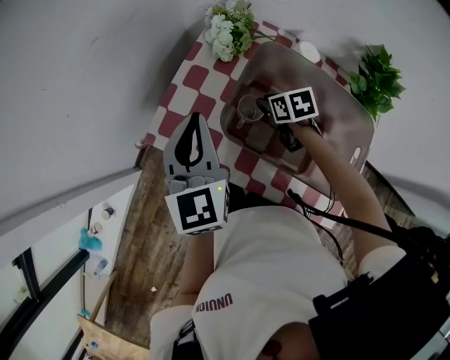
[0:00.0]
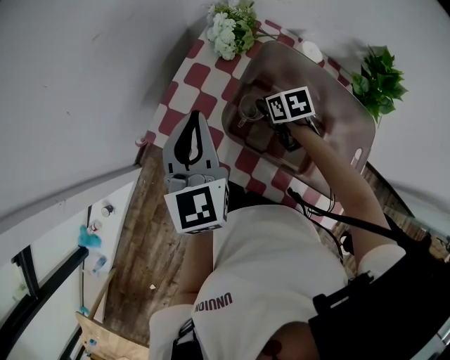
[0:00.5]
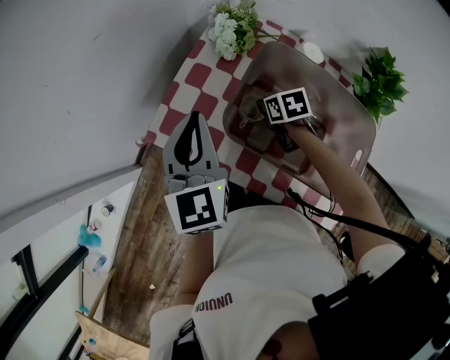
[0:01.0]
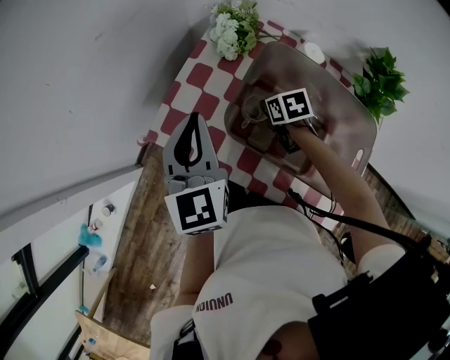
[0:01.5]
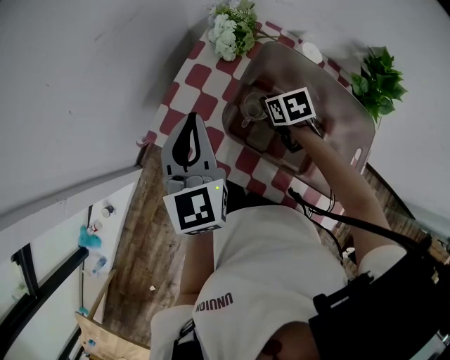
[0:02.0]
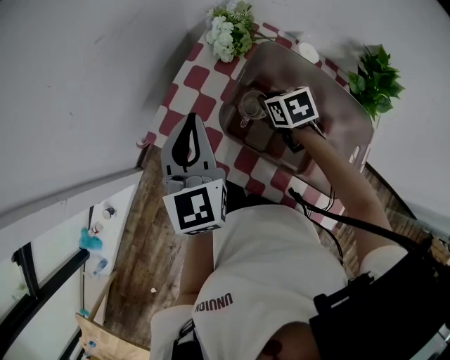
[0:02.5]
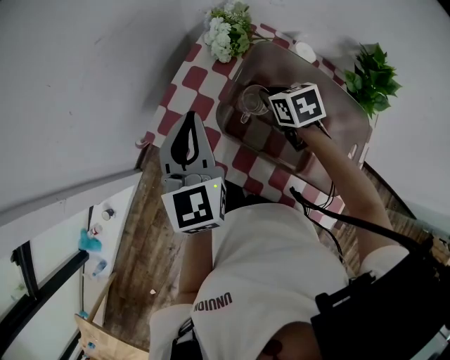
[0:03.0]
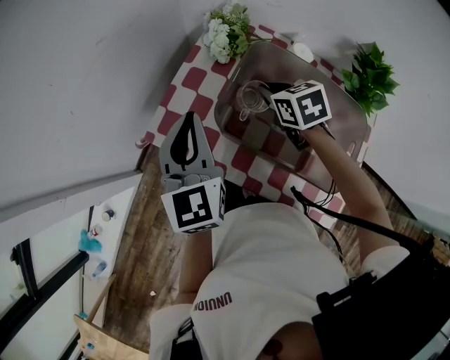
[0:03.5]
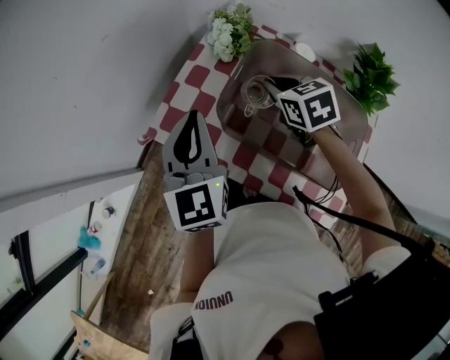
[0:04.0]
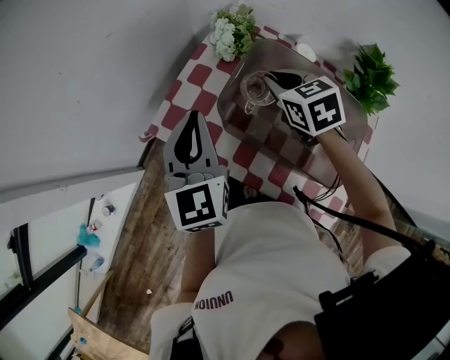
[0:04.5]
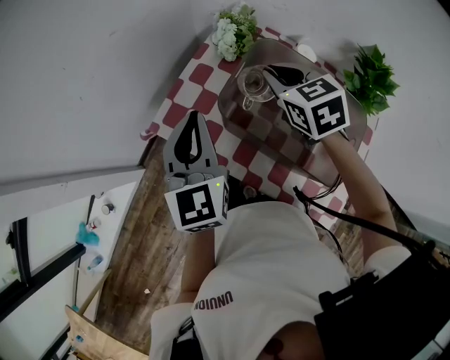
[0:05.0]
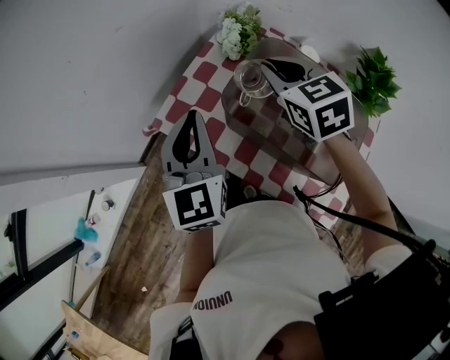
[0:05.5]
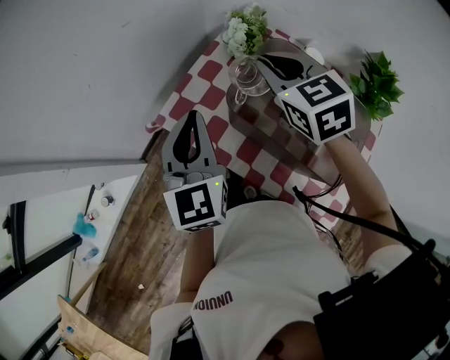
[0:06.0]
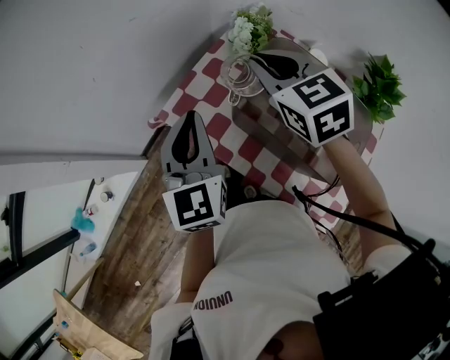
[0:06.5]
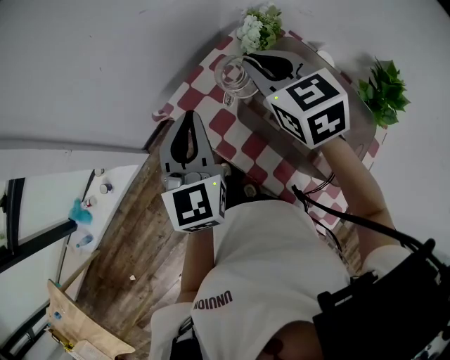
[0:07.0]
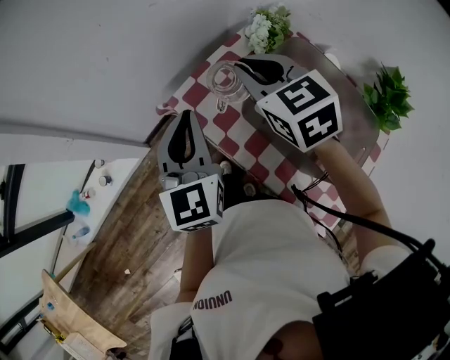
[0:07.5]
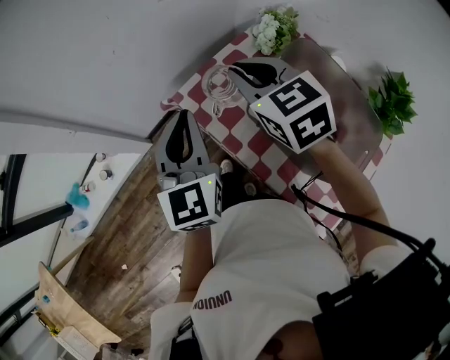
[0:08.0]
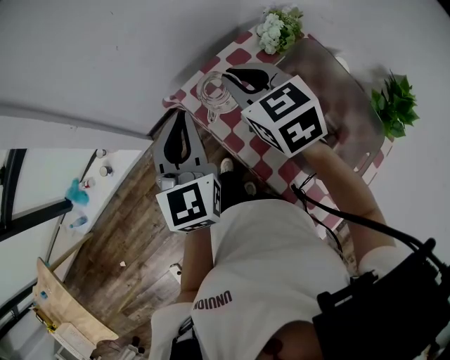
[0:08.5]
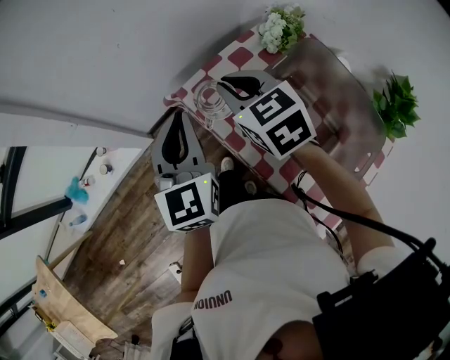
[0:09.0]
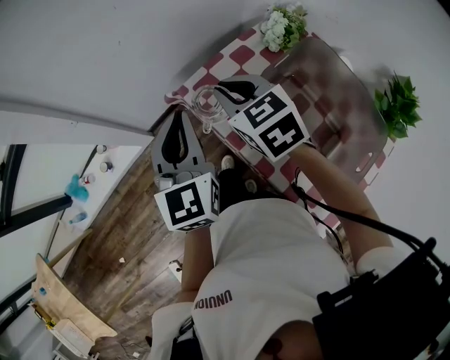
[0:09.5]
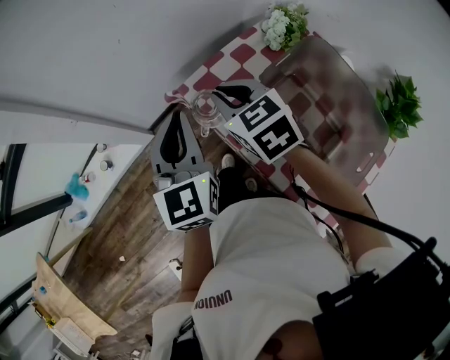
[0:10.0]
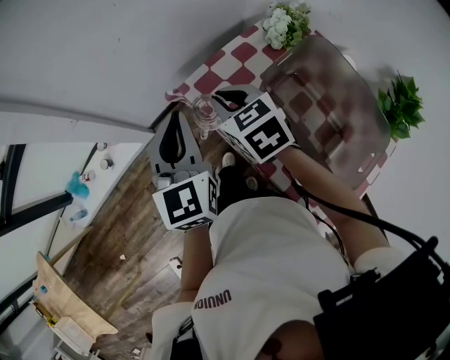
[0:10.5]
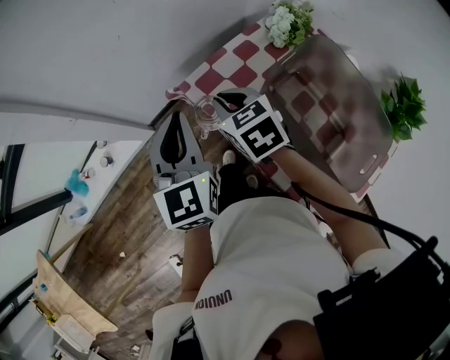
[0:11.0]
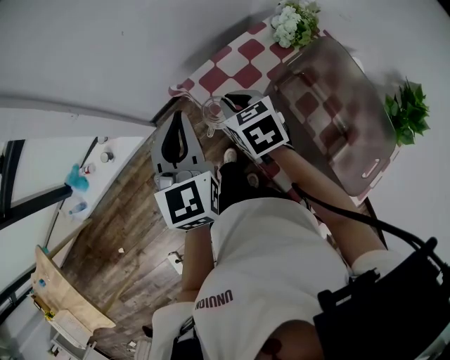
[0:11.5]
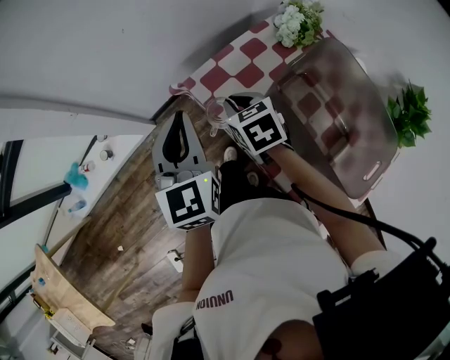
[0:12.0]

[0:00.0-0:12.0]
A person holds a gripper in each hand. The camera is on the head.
0:00.0 to 0:02.0: The grippers make only small movements.
0:02.0 to 0:04.0: The right gripper goes roughly 15 cm upward, and turns by some 20 degrees.
0:04.0 to 0:06.0: The right gripper heads upward and to the left, covering some 15 cm, and rotates some 20 degrees.
0:06.0 to 0:08.0: The right gripper shifts about 10 cm to the left, while the left gripper shifts about 5 cm to the left.
0:08.0 to 0:10.0: The right gripper moves downward and to the left, about 10 cm.
0:10.0 to 0:12.0: The right gripper shifts approximately 10 cm downward.

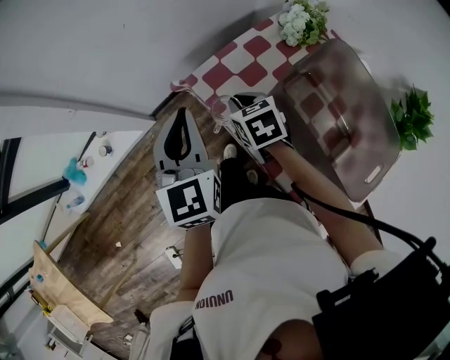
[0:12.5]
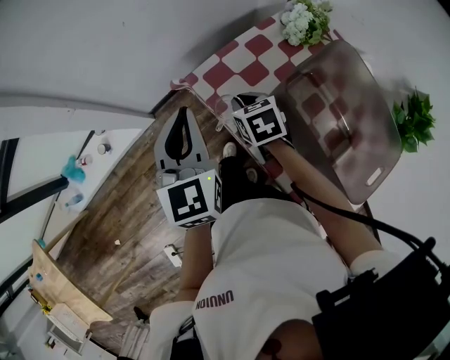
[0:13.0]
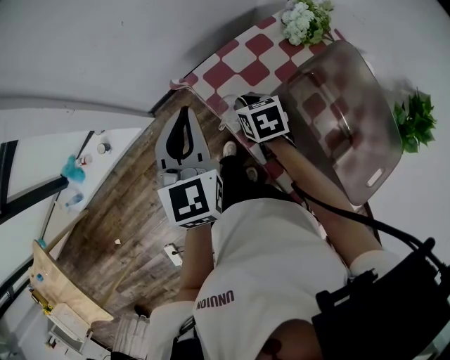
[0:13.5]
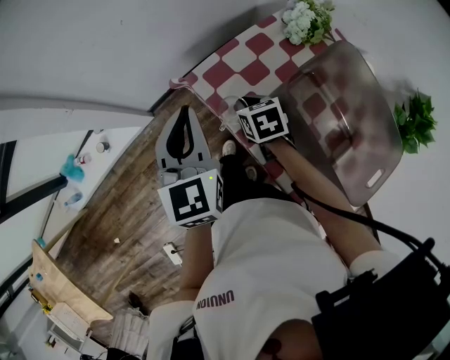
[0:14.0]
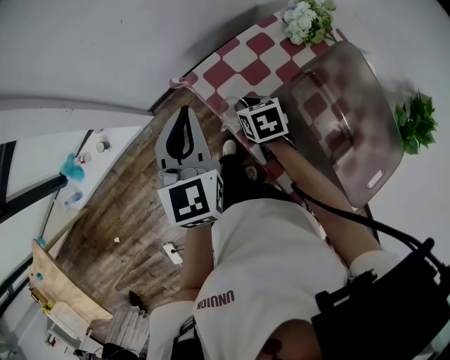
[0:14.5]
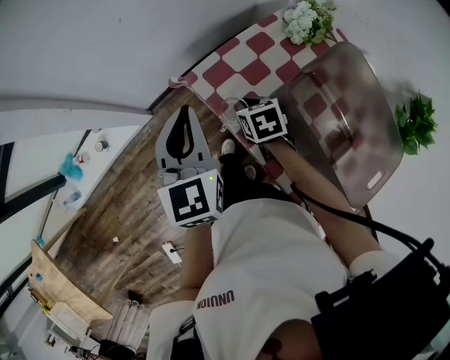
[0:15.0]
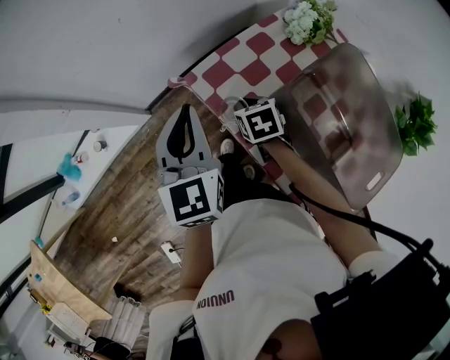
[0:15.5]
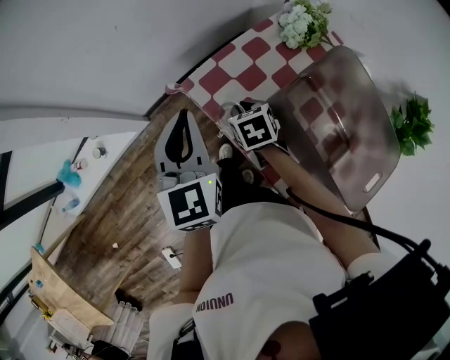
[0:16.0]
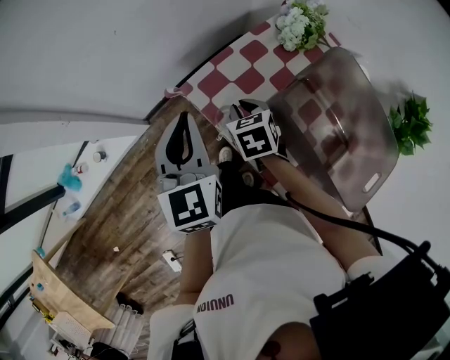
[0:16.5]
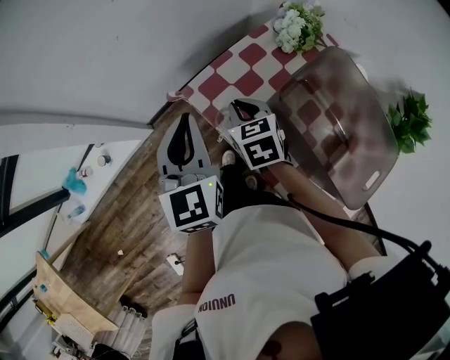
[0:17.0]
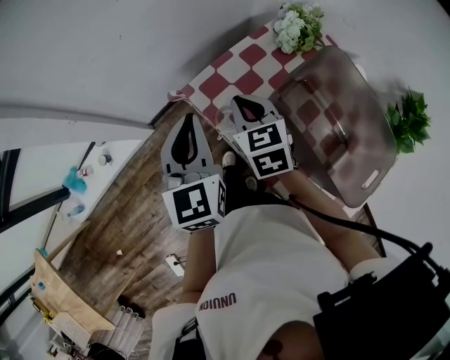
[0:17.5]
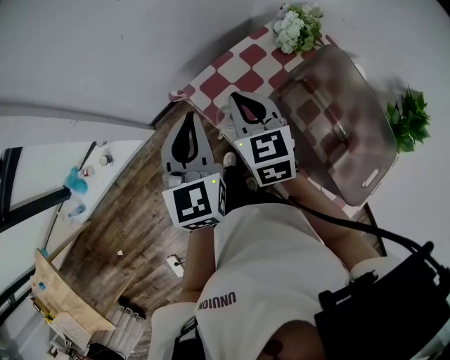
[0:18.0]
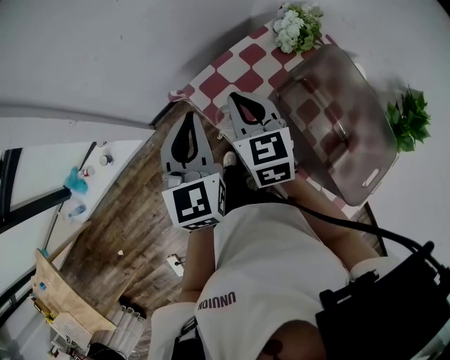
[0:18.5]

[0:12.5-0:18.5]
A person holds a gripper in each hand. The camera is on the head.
0:12.5 to 0:14.5: The right gripper travels downward by roughly 5 cm.
0:14.5 to 0:16.5: The grippers stay close to where they were, moving slightly.
0:16.5 to 0:18.5: The right gripper goes some 15 cm upward, and changes its angle by some 30 degrees.

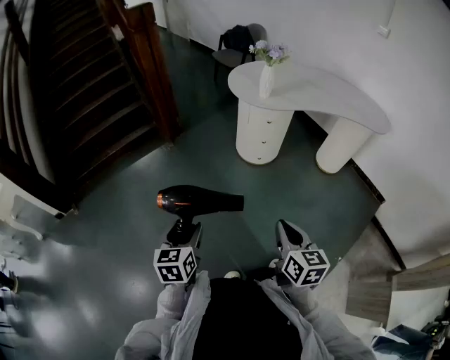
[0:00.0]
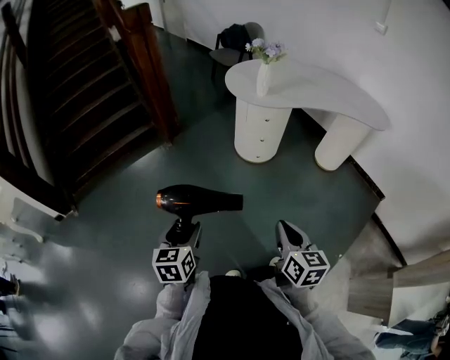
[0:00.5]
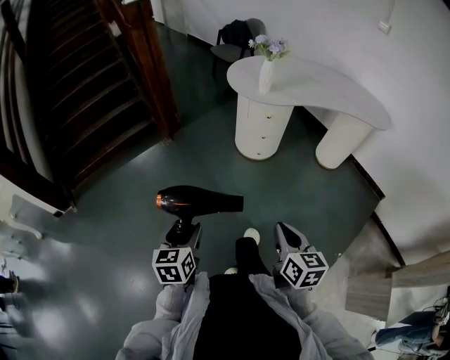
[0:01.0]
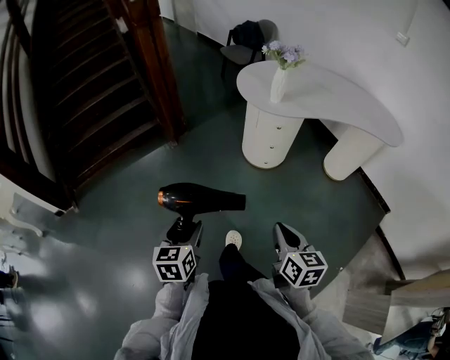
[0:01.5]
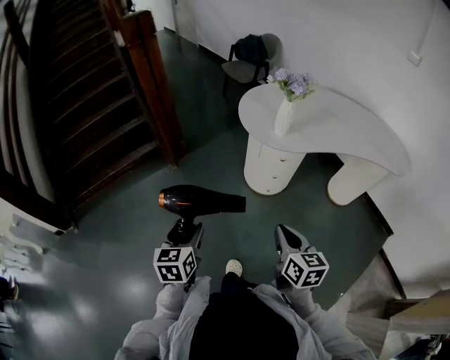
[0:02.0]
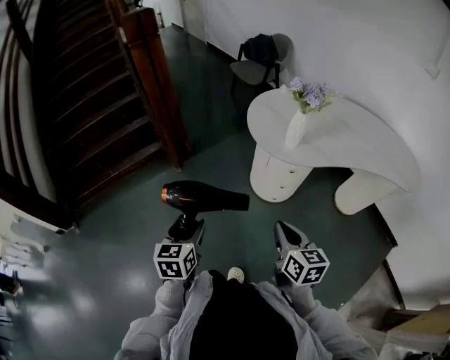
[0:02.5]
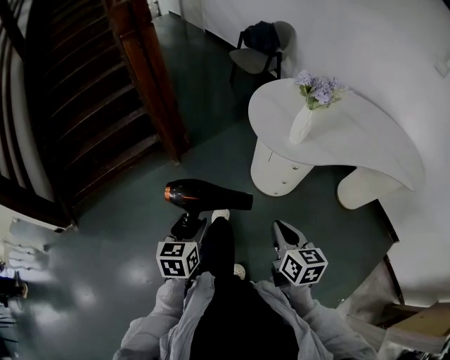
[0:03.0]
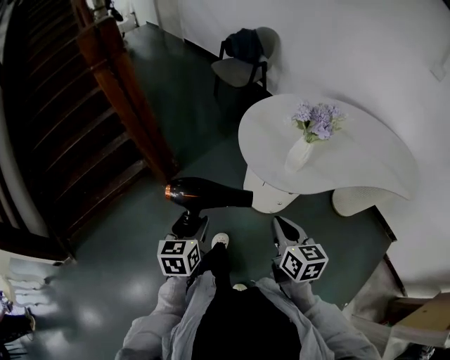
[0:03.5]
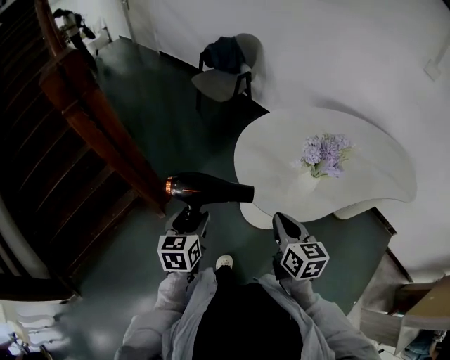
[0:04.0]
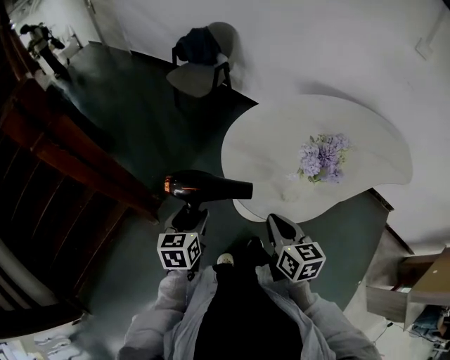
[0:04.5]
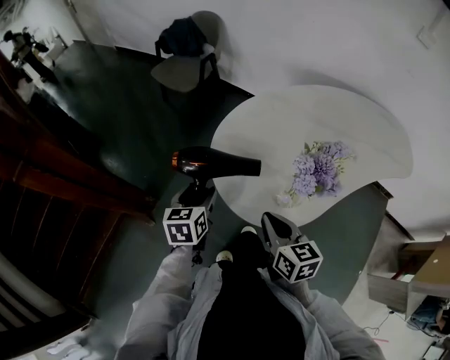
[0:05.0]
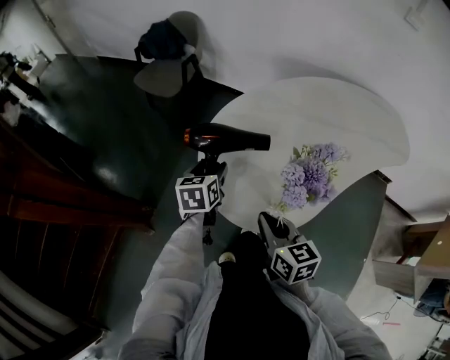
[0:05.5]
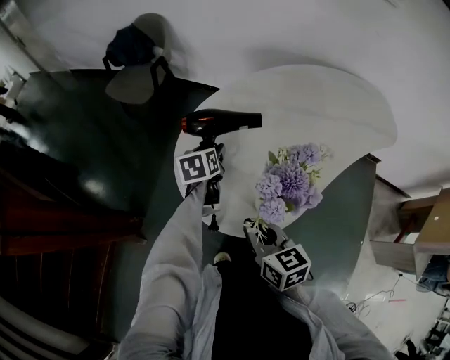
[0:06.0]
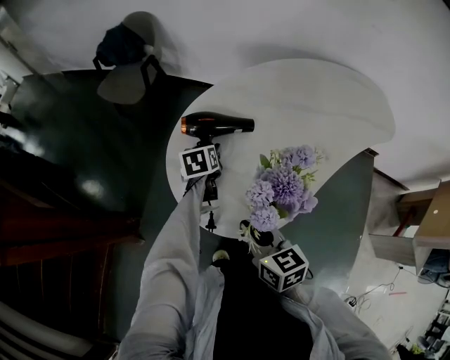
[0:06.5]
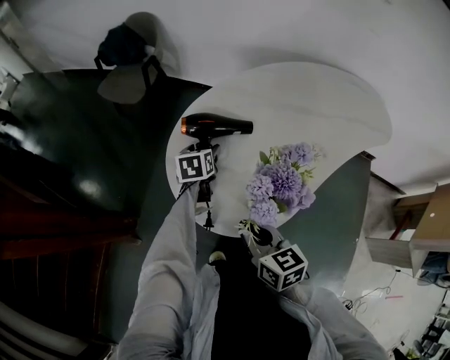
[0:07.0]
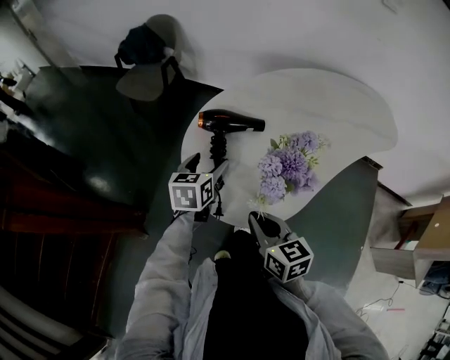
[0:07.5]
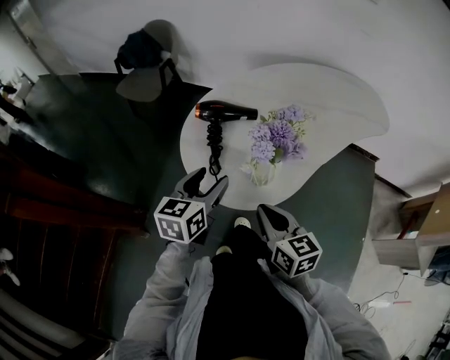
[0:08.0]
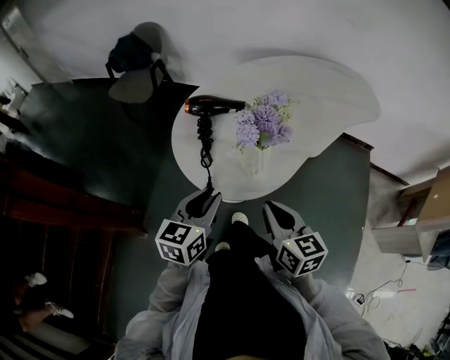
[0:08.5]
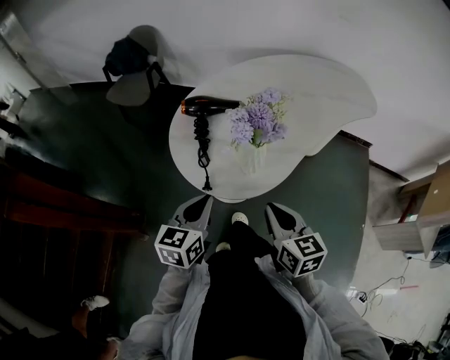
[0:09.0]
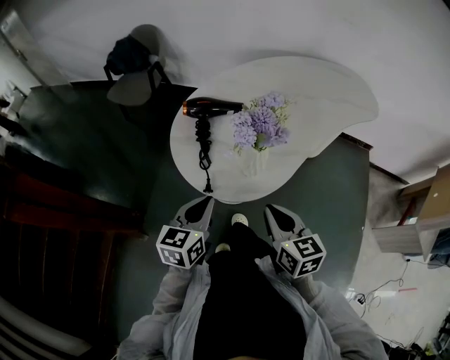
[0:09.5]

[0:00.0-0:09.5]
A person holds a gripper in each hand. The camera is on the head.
0:00.0 to 0:02.0: The grippers both shift forward by approximately 25 cm.
0:02.0 to 0:04.0: Both grippers are carried forward, roughly 50 cm.
0:04.0 to 0:05.5: The right gripper moves forward, approximately 10 cm, while the left gripper goes about 35 cm forward and to the right.
0:05.5 to 0:07.5: The left gripper is displaced to the right by about 5 cm, and reaches approximately 10 cm forward, then returns.
0:07.5 to 0:09.5: The right gripper is displaced backward and to the right by some 10 cm. Meanwhile the left gripper goes approximately 20 cm backward, and closes up.
